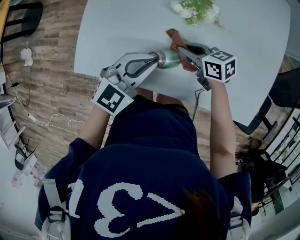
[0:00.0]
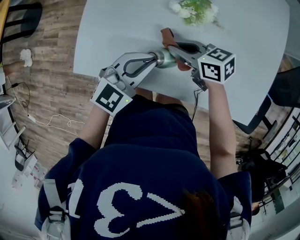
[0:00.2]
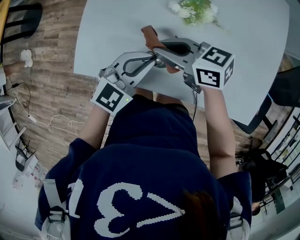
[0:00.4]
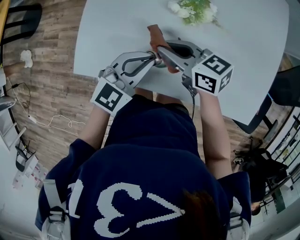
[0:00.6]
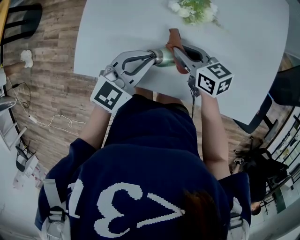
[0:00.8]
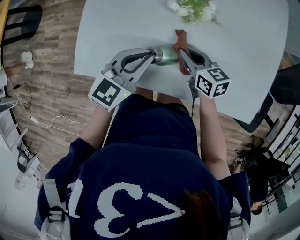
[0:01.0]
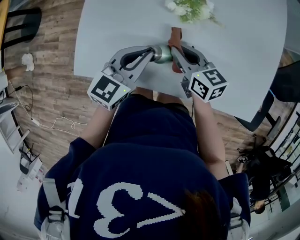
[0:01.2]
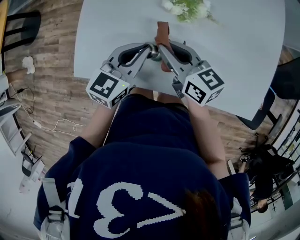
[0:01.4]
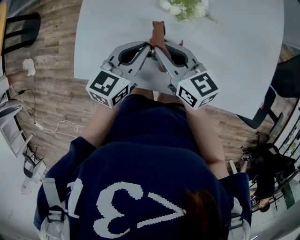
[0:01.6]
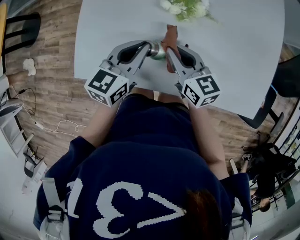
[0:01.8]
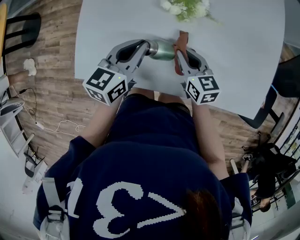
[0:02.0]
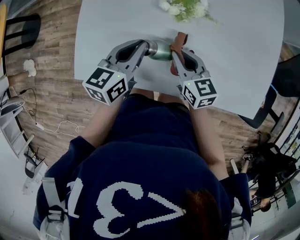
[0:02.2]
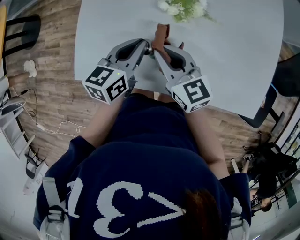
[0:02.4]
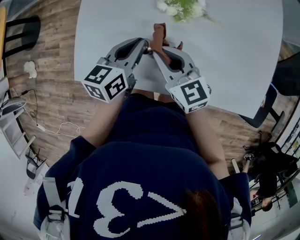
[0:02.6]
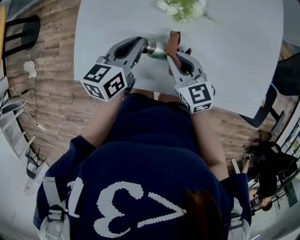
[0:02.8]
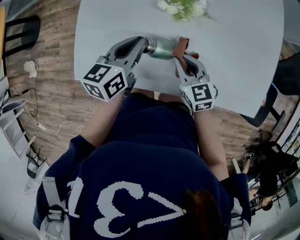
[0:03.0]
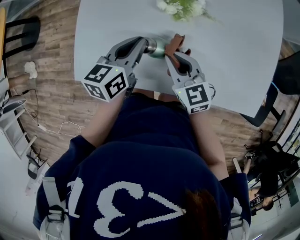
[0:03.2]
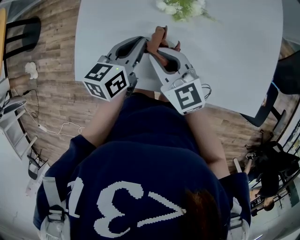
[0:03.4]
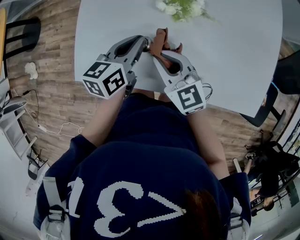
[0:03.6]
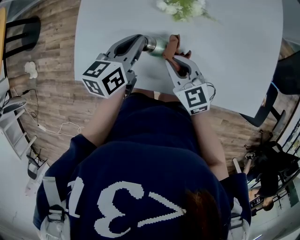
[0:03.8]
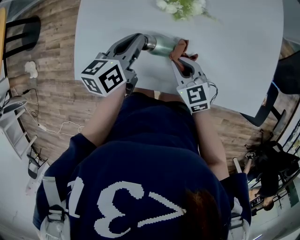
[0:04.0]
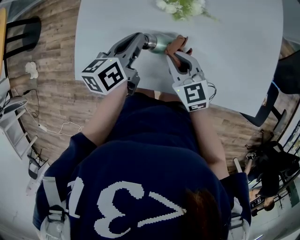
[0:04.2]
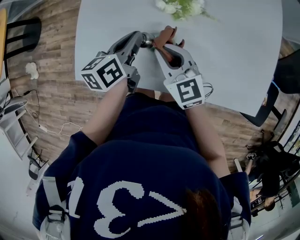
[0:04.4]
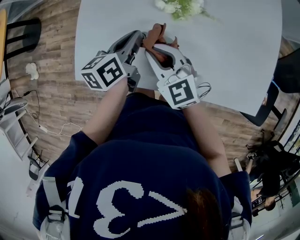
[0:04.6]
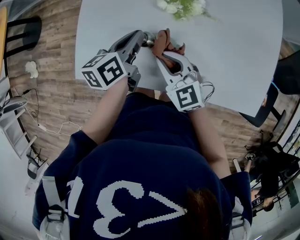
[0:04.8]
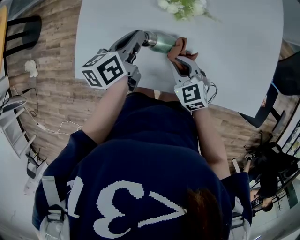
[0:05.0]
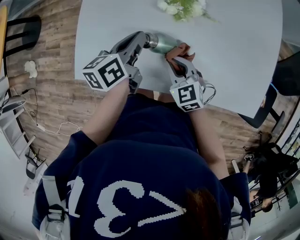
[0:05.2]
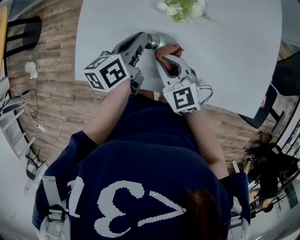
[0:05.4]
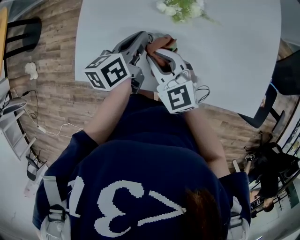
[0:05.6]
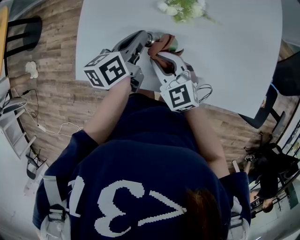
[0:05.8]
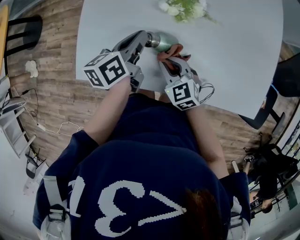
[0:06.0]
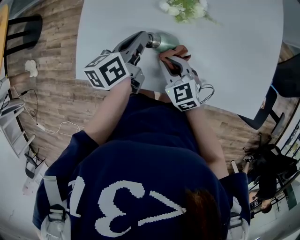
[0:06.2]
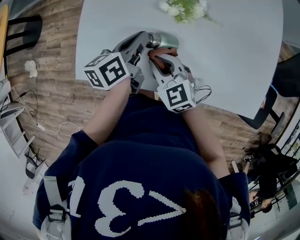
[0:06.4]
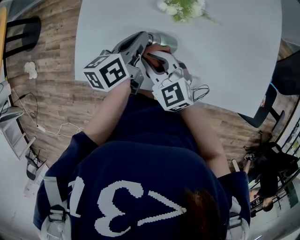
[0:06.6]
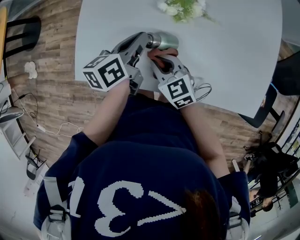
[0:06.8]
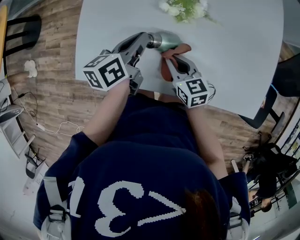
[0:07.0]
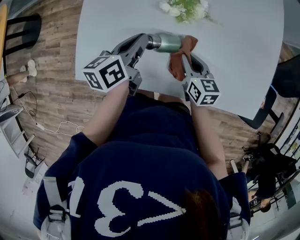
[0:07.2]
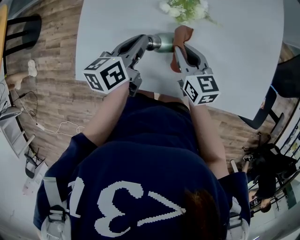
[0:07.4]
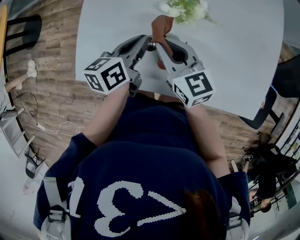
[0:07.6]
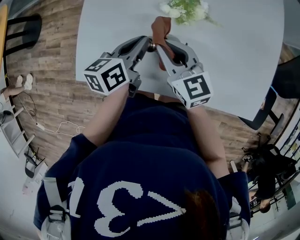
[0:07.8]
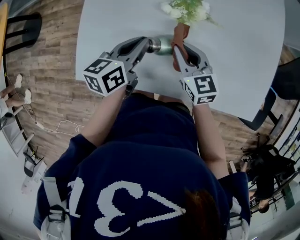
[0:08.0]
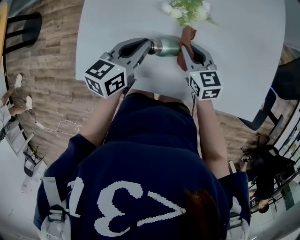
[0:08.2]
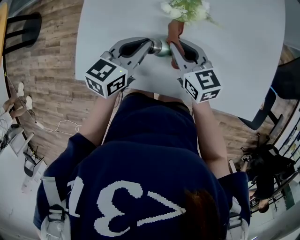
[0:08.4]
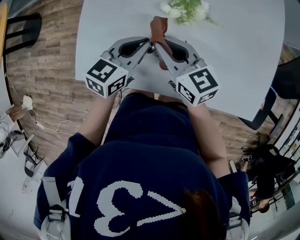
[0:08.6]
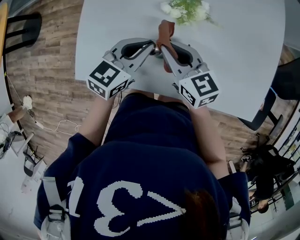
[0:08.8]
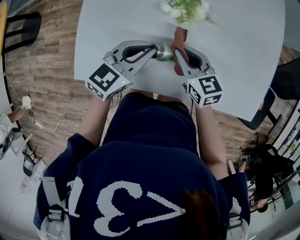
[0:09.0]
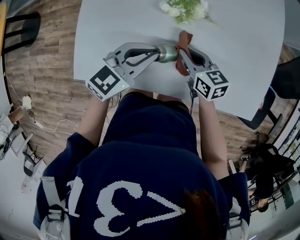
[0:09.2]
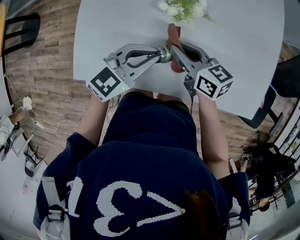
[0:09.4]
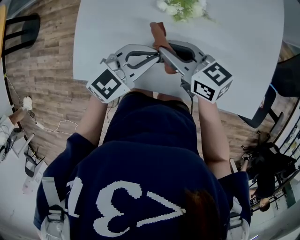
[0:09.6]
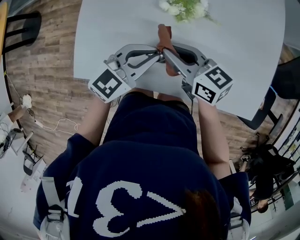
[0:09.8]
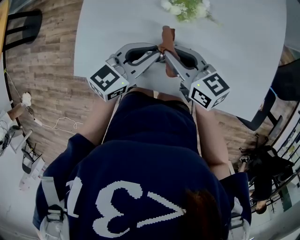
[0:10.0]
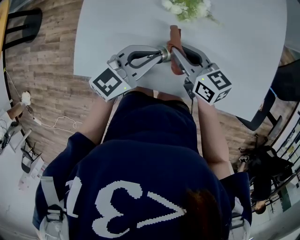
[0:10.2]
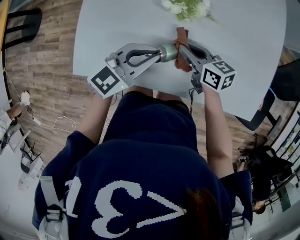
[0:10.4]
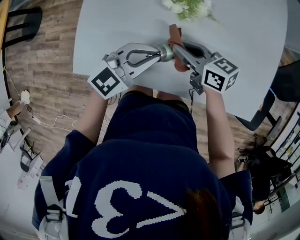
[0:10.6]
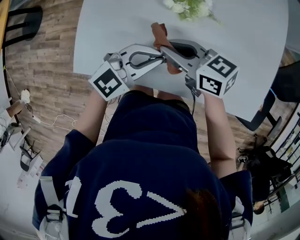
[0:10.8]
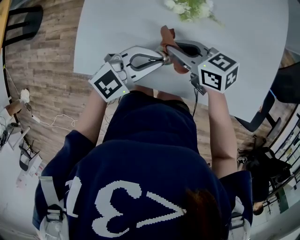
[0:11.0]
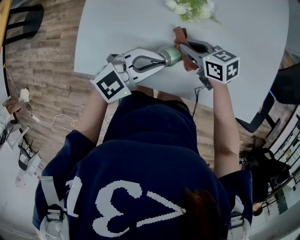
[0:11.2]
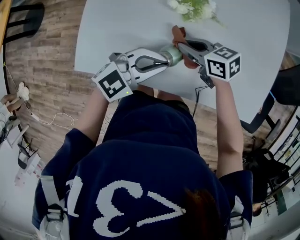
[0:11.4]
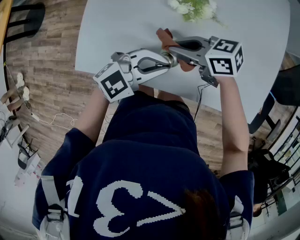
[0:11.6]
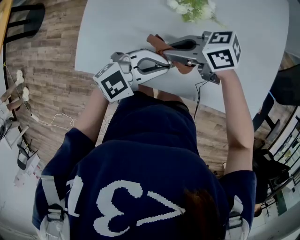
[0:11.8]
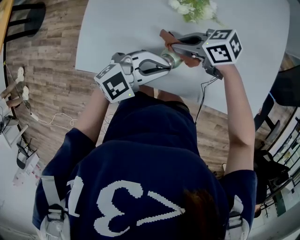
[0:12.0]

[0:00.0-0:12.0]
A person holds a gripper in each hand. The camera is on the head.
0.0 to 1.6 s: The right gripper goes up and down, approximately 10 cm each way, reversing 2 times, and changes its angle by some 30 degrees. Meanwhile the left gripper changes its angle by approximately 30 degrees.
1.6 to 3.0 s: The right gripper moves up and down over approximately 10 cm, changing direction 2 times, and turns by about 20 degrees.
3.0 to 4.4 s: The right gripper swings up and down, roughly 10 cm each way, with 2 reversals.
4.4 to 6.0 s: The right gripper swings up and down, about 10 cm each way, with 2 reversals.
6.0 to 7.6 s: The right gripper moves left and right over some 15 cm, changing direction 2 times, and rotates roughly 30 degrees.
7.6 to 9.0 s: The right gripper swings up and down, approximately 10 cm each way, with 2 reversals. Meanwhile the left gripper shifts by some 5 cm, and rotates around the line of its fingers by about 40 degrees, clockwise from behind.
9.0 to 10.4 s: The right gripper travels upward and back again, approximately 5 cm each way, and changes its angle by approximately 20 degrees.
10.4 to 12.0 s: The left gripper changes place by roughly 5 cm, and swivels about 20 degrees. Meanwhile the right gripper moves up and down over about 10 cm, changing direction 3 times, and changes its angle by roughly 40 degrees.

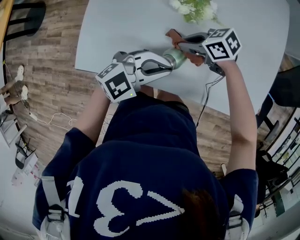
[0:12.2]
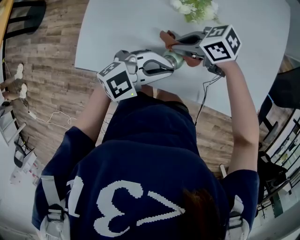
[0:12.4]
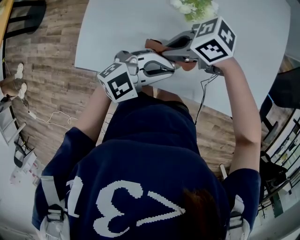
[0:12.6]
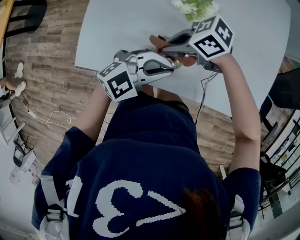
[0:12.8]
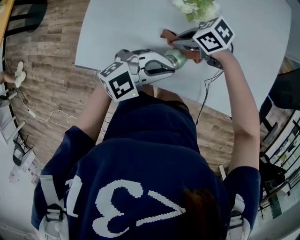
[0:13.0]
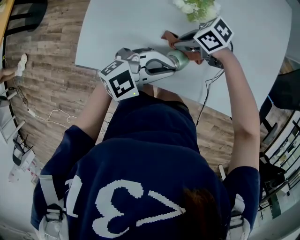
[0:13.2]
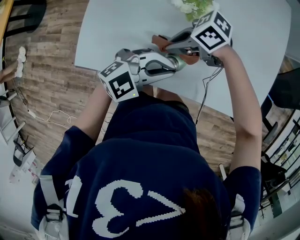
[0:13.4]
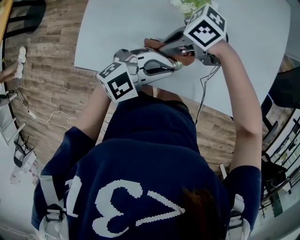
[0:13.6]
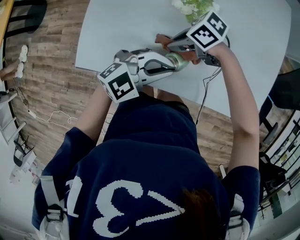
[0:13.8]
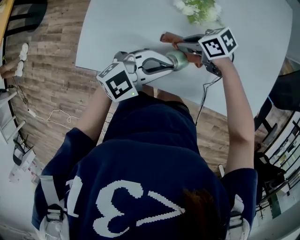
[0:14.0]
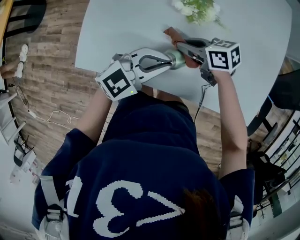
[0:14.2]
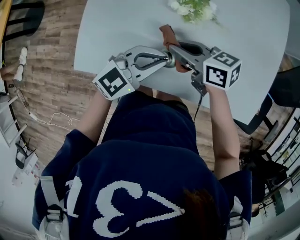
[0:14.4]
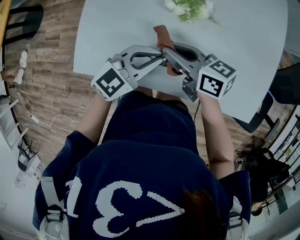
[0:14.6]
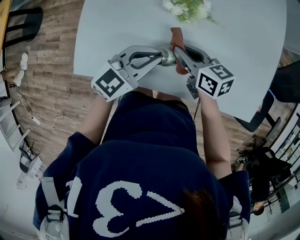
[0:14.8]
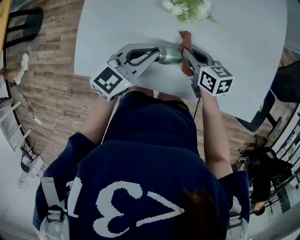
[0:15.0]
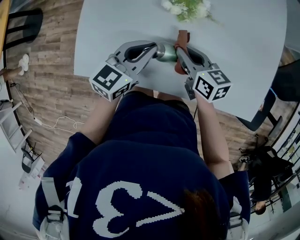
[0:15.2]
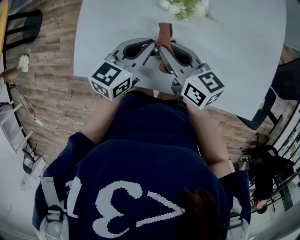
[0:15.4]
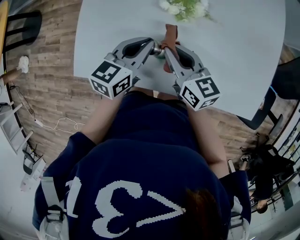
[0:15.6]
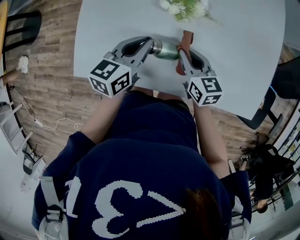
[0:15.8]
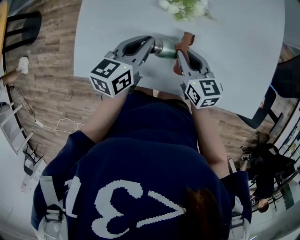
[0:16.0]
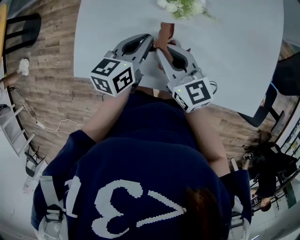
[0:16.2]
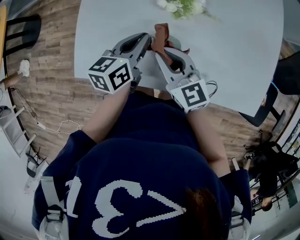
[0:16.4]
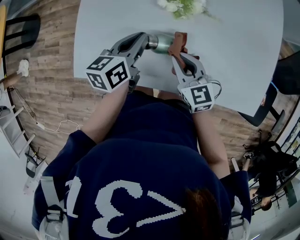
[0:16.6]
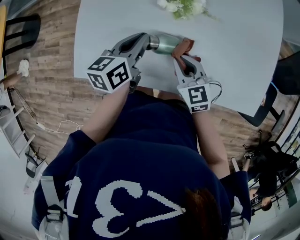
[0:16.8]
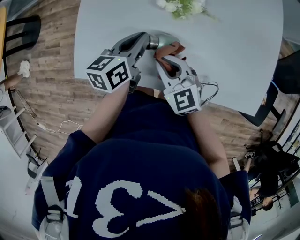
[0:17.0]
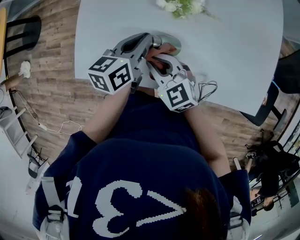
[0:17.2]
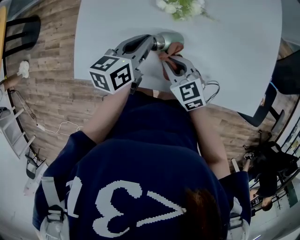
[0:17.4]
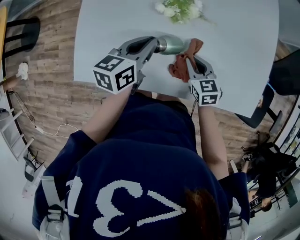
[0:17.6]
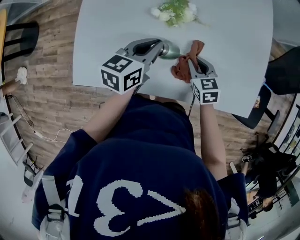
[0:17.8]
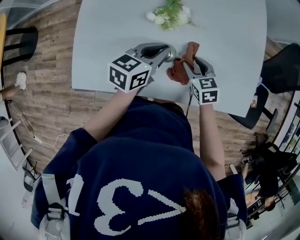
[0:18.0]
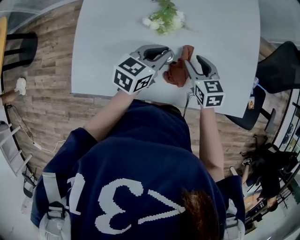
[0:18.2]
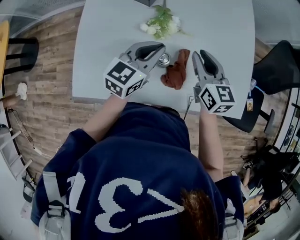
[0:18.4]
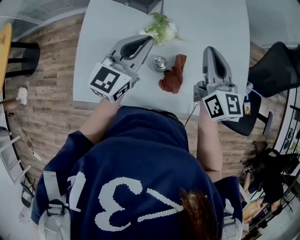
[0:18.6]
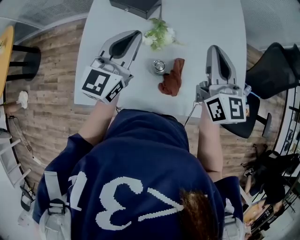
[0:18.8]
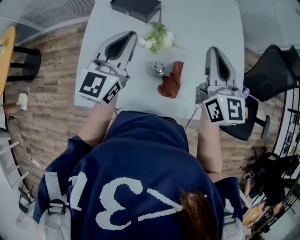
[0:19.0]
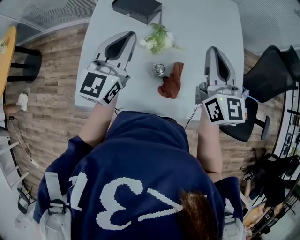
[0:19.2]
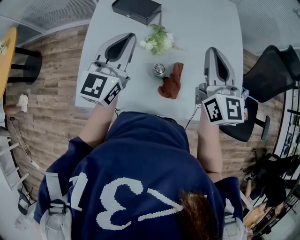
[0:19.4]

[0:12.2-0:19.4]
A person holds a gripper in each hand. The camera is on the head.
12.2 to 13.6 s: The right gripper swings up and down, some 10 cm each way, with 2 reversals, and swivels about 20 degrees.
13.6 to 15.0 s: The right gripper swings up and down, roughly 10 cm each way, with 2 reversals, and changes its angle by some 70 degrees, while the left gripper moves about 10 cm, and swivels about 40 degrees.
15.0 to 16.6 s: The left gripper changes place by some 5 cm, and turns by approximately 40 degrees, while the right gripper moves up and down over about 10 cm, changing direction 3 times, and rotates approximately 30 degrees.
16.6 to 18.0 s: The grippers both shift to the right by approximately 10 cm. The left gripper changes its angle by roughly 20 degrees; the right gripper turns by about 20 degrees, and opens.
18.0 to 19.4 s: The right gripper goes approximately 35 cm upward, tips its fingers upward by approximately 50 degrees, and closes up. The left gripper is displaced upward by roughly 20 cm, and changes its angle by approximately 40 degrees.

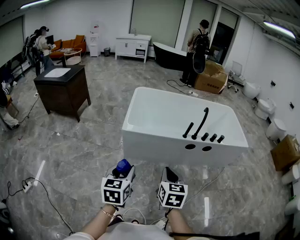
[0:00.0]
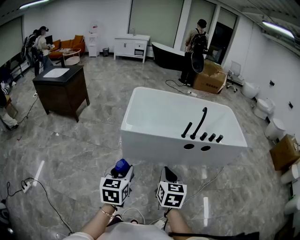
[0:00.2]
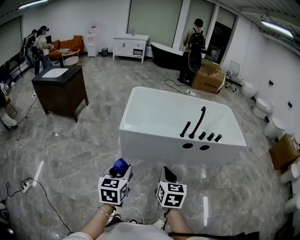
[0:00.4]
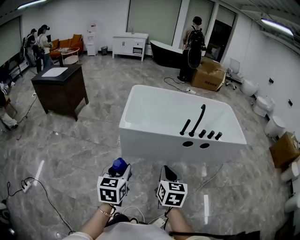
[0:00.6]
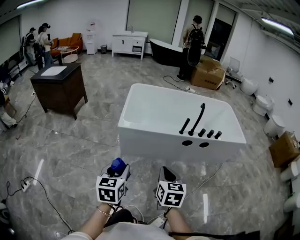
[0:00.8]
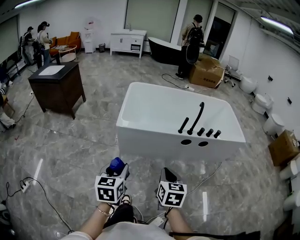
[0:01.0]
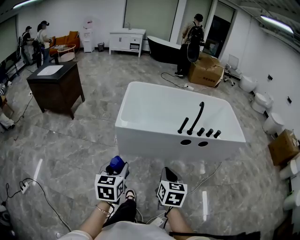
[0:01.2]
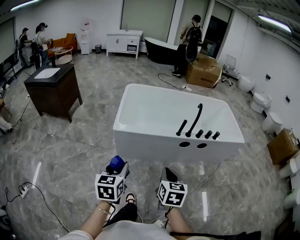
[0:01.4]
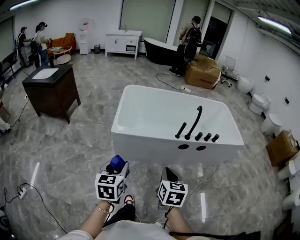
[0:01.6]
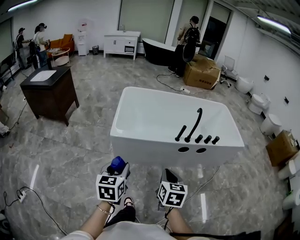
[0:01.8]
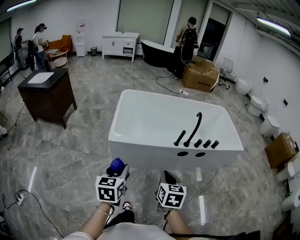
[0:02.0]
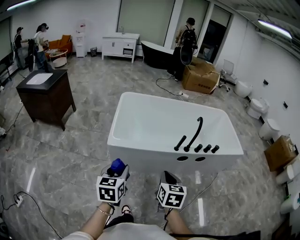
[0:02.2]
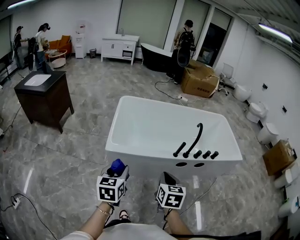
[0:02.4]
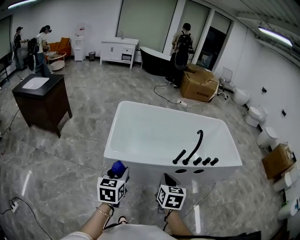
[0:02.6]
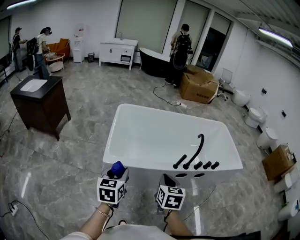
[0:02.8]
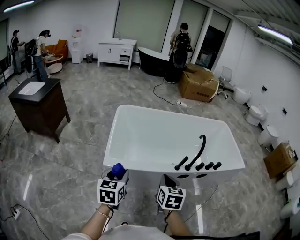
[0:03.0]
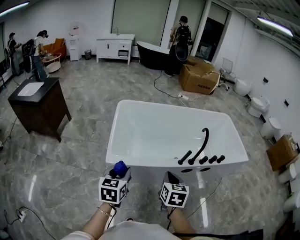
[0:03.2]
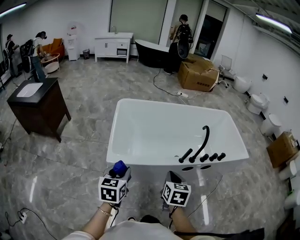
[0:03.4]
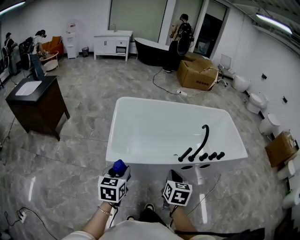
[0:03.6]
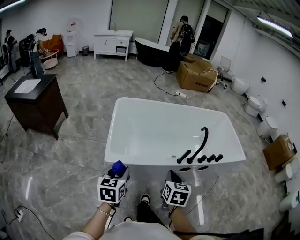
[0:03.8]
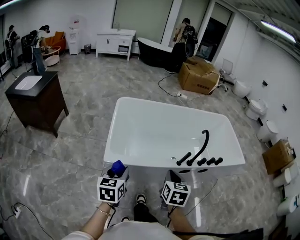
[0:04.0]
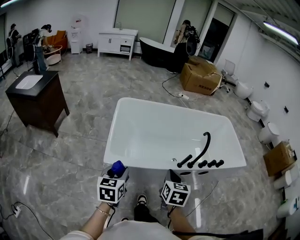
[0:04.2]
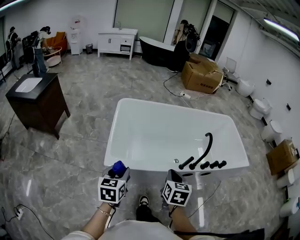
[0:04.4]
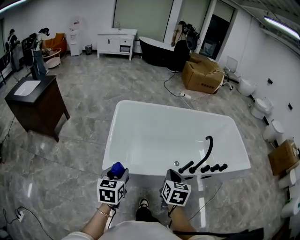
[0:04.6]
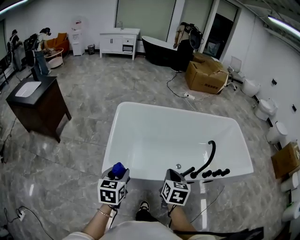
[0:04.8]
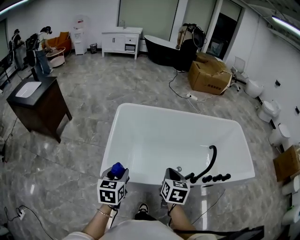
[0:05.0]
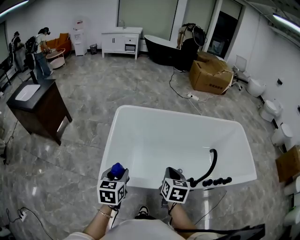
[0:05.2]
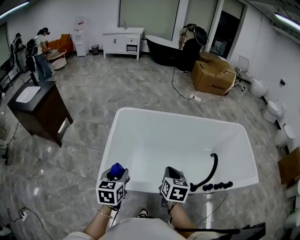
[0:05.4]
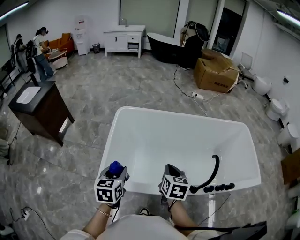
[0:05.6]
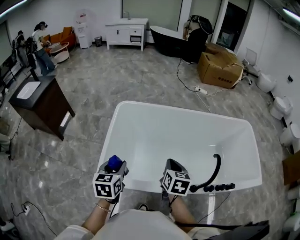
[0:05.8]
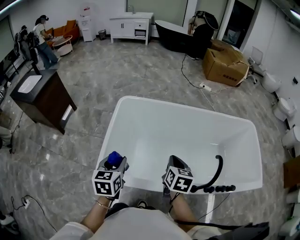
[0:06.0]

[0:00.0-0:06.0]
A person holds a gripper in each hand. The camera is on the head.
0.0 to 1.6 s: The grippers both shift forward by approximately 5 cm.
1.6 to 3.0 s: Both grippers move forward, about 20 cm.
3.0 to 4.4 s: The right gripper moves forward, approximately 5 cm. The left gripper moves roughly 5 cm.
4.4 to 6.0 s: The two grippers go about 20 cm forward.
